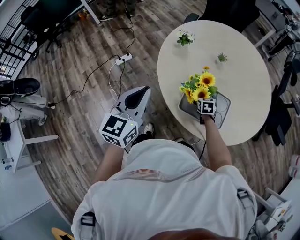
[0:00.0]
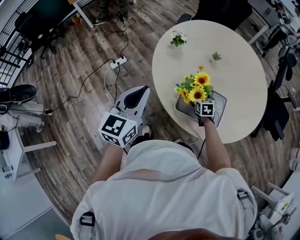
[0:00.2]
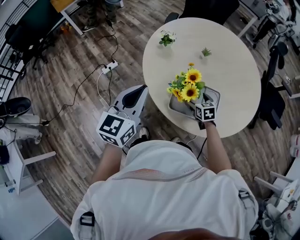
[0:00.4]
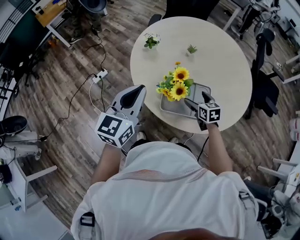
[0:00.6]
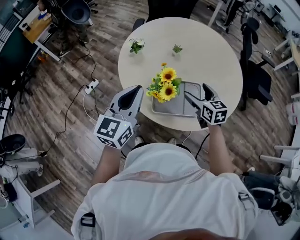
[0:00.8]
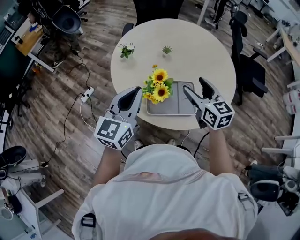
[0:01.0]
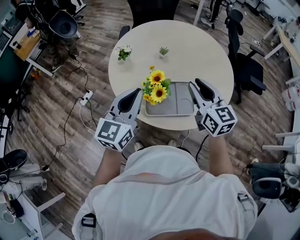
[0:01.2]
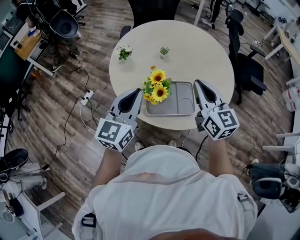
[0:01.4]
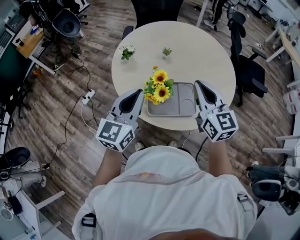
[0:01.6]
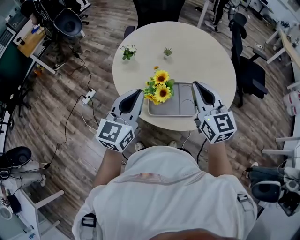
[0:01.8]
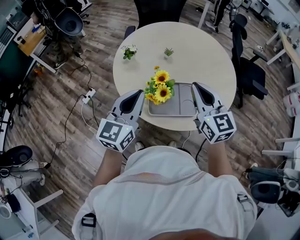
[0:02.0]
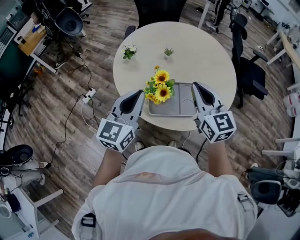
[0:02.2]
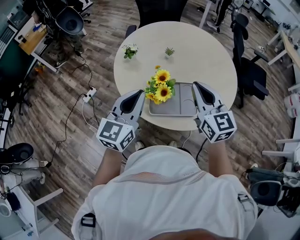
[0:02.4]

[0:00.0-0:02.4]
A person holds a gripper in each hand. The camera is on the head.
0:00.0 to 0:01.2: The right gripper shifts some 35 cm upward, tilts its fingers some 40 degrees upward, and closes its fingers, while the left gripper heads to the right, covering roughly 15 cm, and turns by roughly 30 degrees.
0:01.2 to 0:02.4: The grippers move only a little.

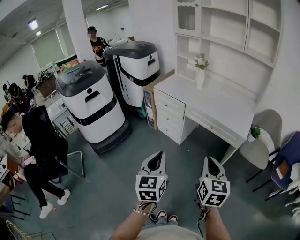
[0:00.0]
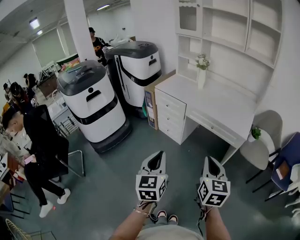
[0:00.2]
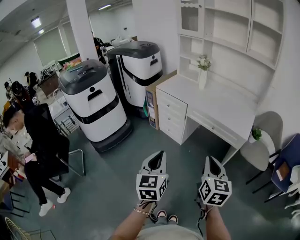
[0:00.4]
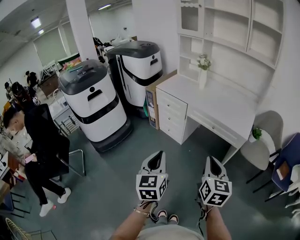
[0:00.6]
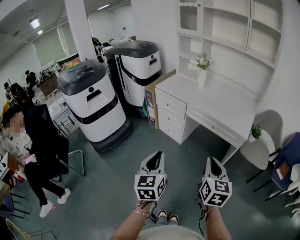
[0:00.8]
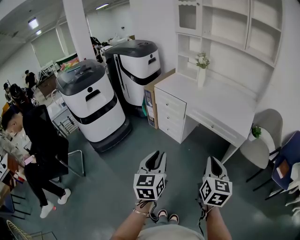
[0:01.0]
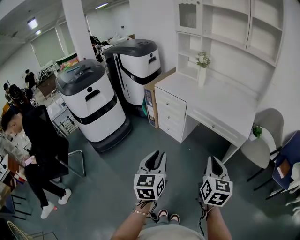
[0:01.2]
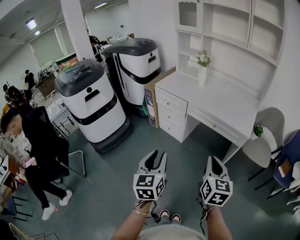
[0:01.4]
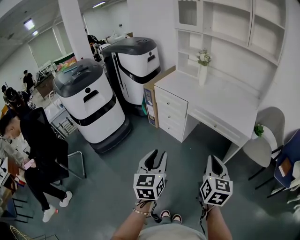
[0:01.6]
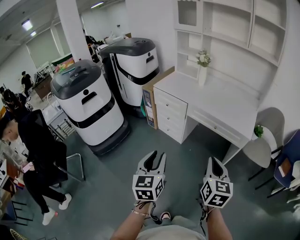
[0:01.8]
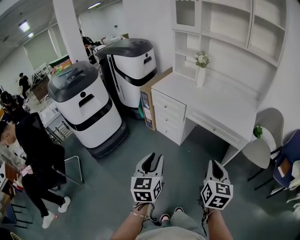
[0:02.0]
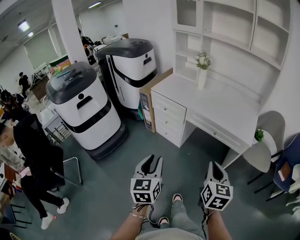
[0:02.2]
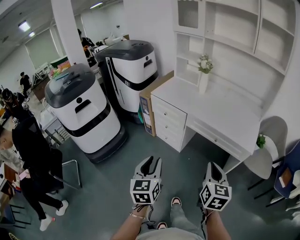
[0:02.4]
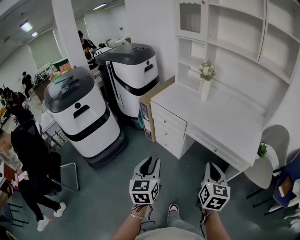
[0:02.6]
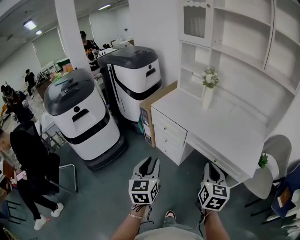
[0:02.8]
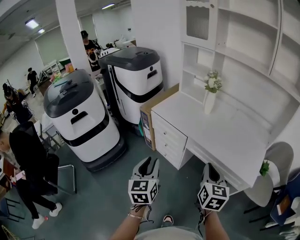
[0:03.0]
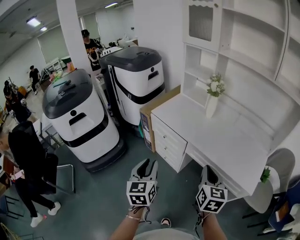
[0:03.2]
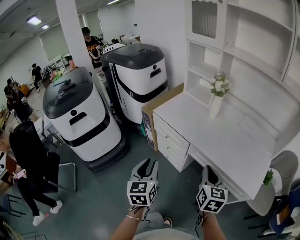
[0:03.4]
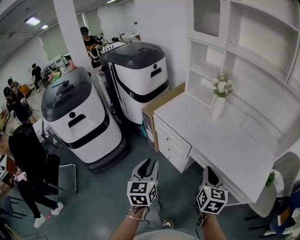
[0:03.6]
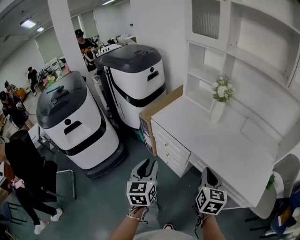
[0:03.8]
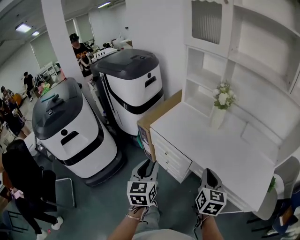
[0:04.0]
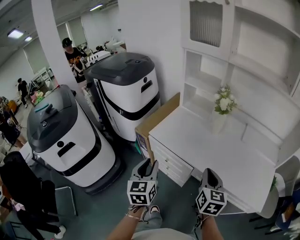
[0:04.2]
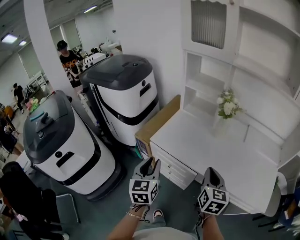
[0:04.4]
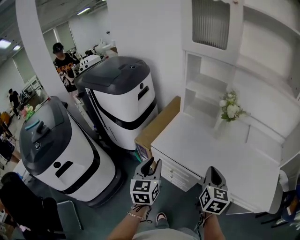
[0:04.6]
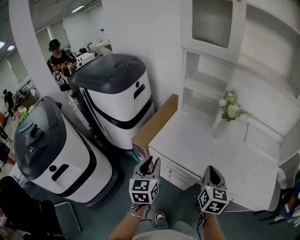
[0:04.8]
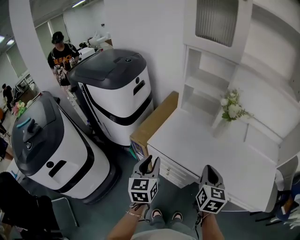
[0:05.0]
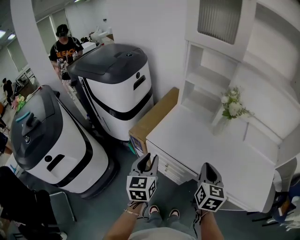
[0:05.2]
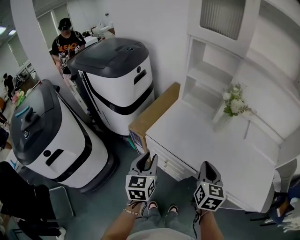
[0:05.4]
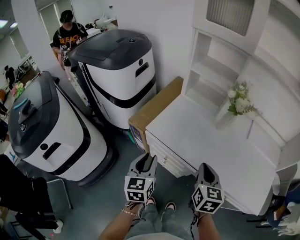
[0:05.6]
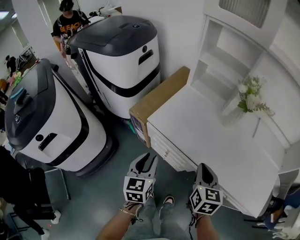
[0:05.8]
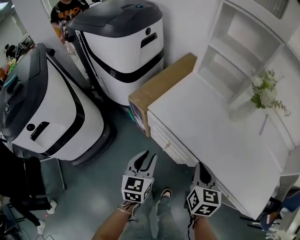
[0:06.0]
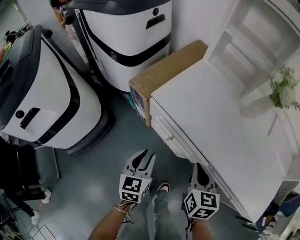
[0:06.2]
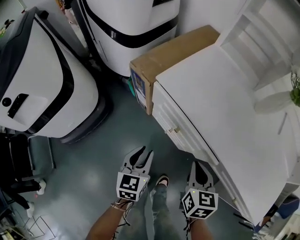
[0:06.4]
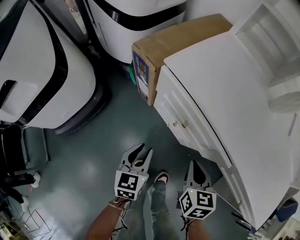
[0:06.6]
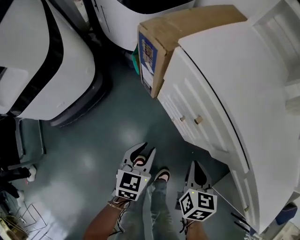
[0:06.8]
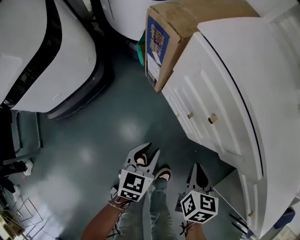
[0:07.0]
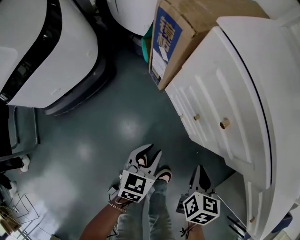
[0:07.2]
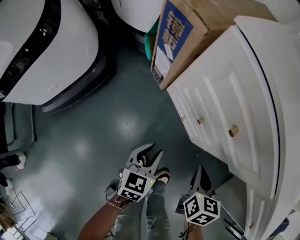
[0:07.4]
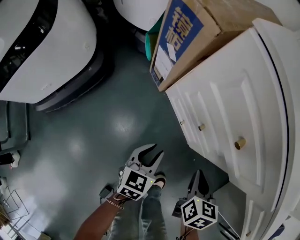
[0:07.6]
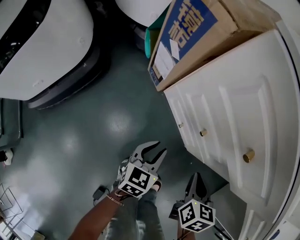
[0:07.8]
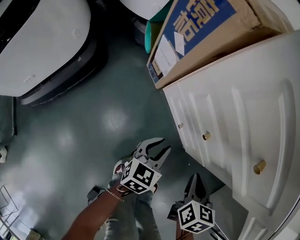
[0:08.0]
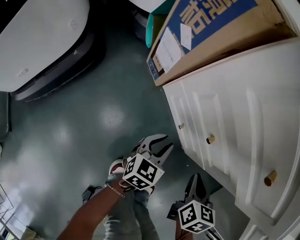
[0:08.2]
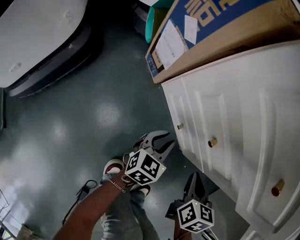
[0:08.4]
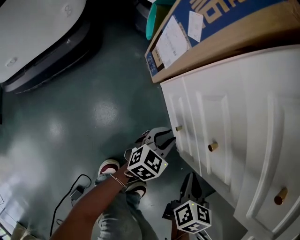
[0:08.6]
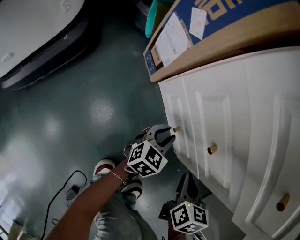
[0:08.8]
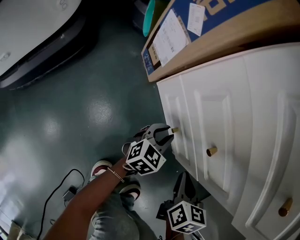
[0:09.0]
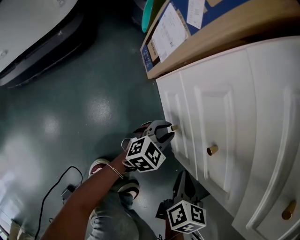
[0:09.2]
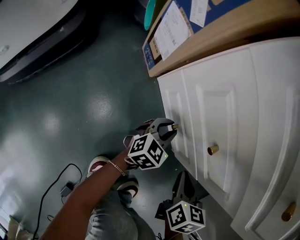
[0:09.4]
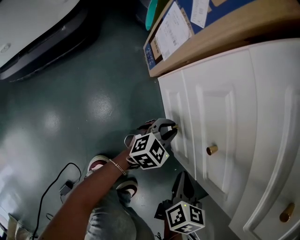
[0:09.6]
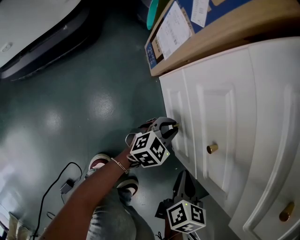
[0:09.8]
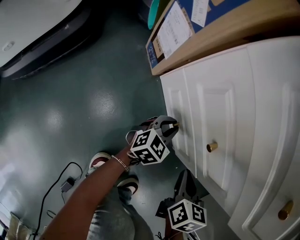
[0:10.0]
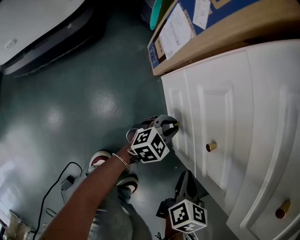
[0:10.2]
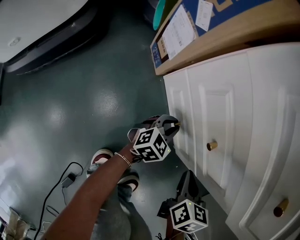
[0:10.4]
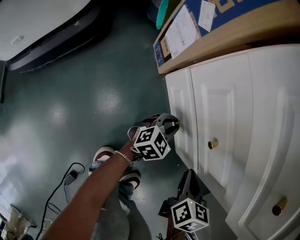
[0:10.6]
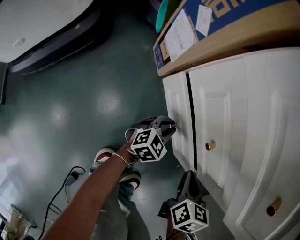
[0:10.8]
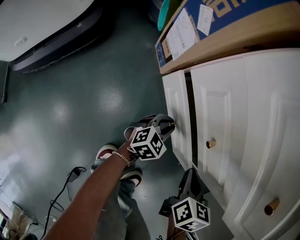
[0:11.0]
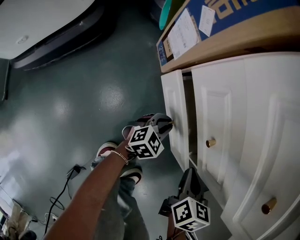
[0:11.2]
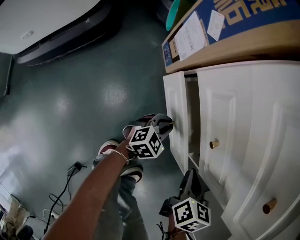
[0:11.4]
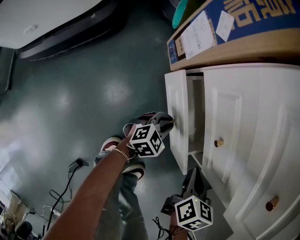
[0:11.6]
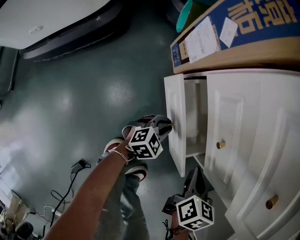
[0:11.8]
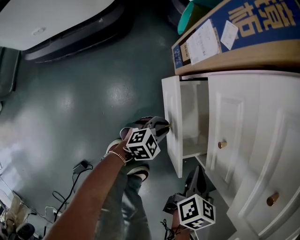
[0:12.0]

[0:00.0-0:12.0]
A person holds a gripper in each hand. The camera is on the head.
0:00.0 to 0:01.6: The left gripper opens its fingers.
0:01.6 to 0:03.0: Both grippers move forward, some 30 cm.
0:03.0 to 0:04.4: Both grippers move forward, about 25 cm.
0:04.4 to 0:06.0: The left gripper shifts some 15 cm downward. The right gripper shifts some 15 cm downward and to the left.
0:06.0 to 0:07.6: Both grippers move downward, roughly 40 cm.
0:07.6 to 0:09.0: The right gripper shifts some 15 cm downward. Meanwhile the left gripper shifts roughly 25 cm downward and forward.
0:09.0 to 0:10.4: The grippers move only a little.
0:10.4 to 0:12.0: The right gripper ends up some 5 cm from where it was. The left gripper heads backward, covering some 10 cm.

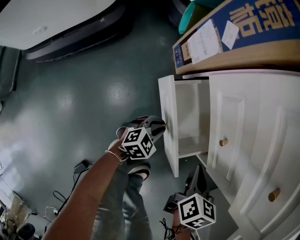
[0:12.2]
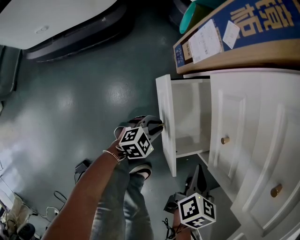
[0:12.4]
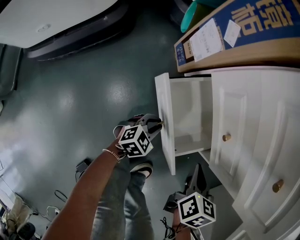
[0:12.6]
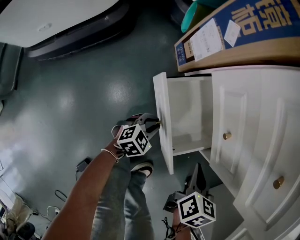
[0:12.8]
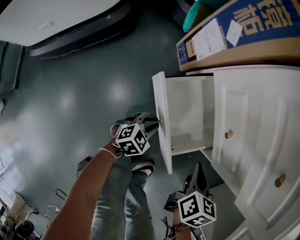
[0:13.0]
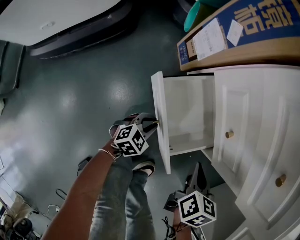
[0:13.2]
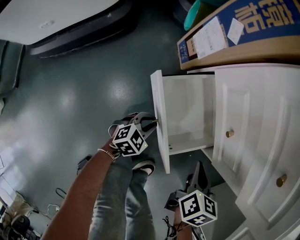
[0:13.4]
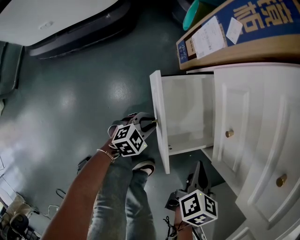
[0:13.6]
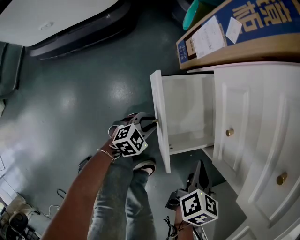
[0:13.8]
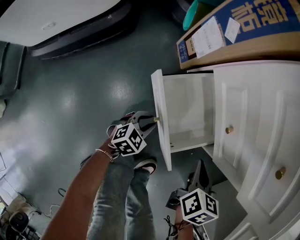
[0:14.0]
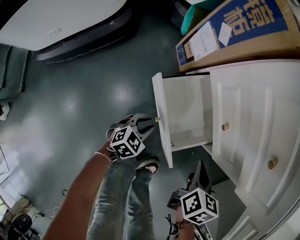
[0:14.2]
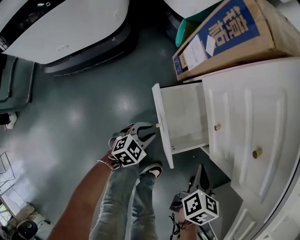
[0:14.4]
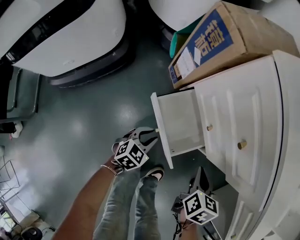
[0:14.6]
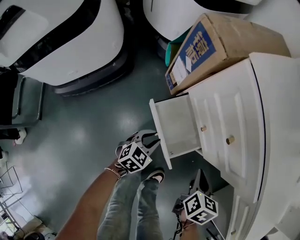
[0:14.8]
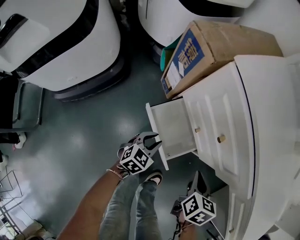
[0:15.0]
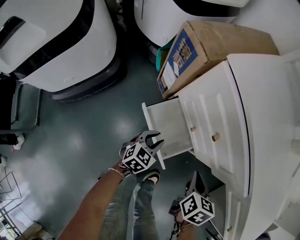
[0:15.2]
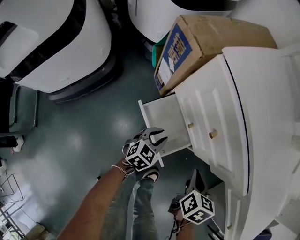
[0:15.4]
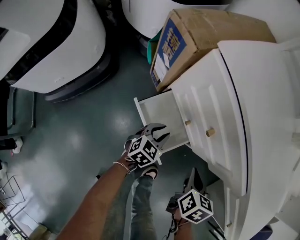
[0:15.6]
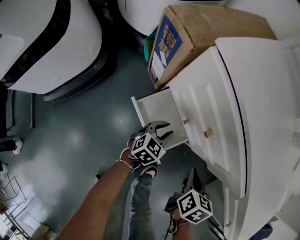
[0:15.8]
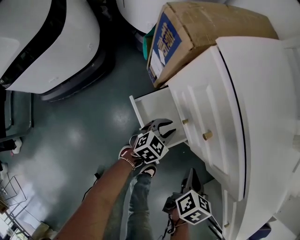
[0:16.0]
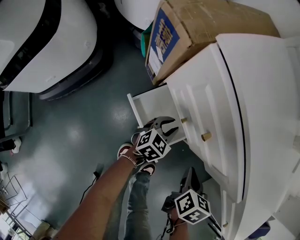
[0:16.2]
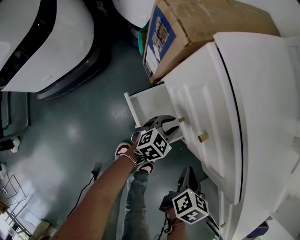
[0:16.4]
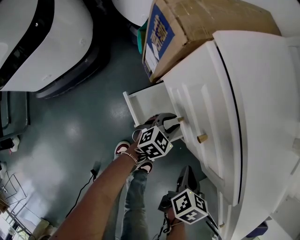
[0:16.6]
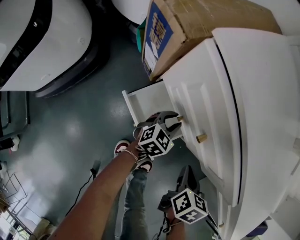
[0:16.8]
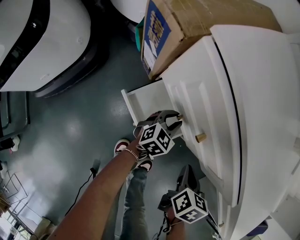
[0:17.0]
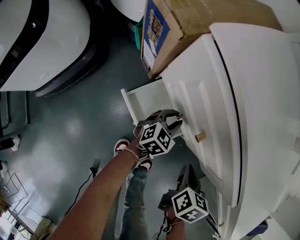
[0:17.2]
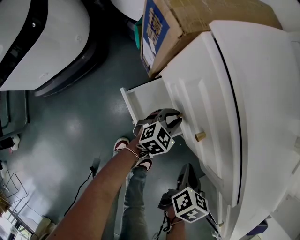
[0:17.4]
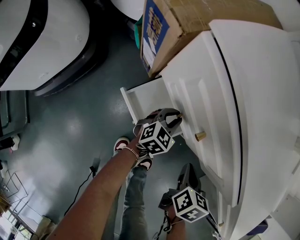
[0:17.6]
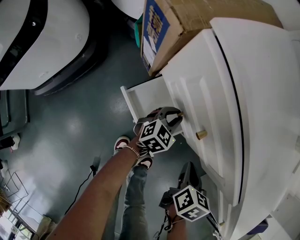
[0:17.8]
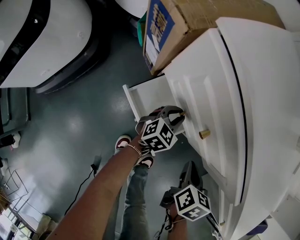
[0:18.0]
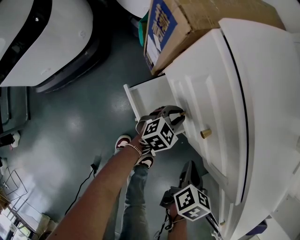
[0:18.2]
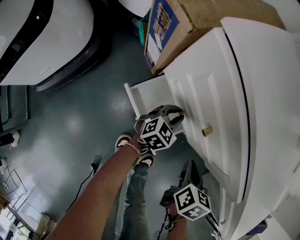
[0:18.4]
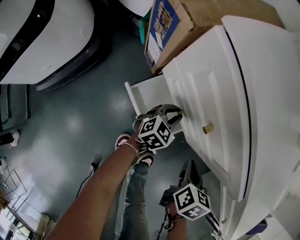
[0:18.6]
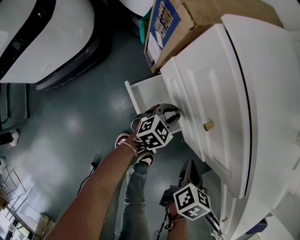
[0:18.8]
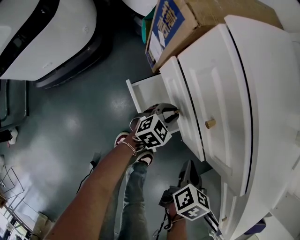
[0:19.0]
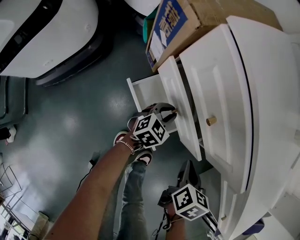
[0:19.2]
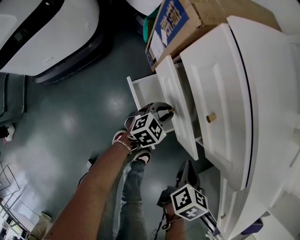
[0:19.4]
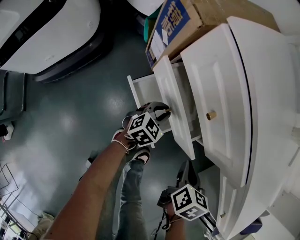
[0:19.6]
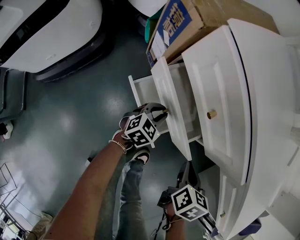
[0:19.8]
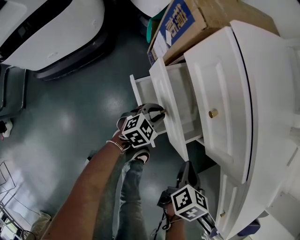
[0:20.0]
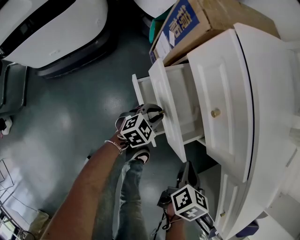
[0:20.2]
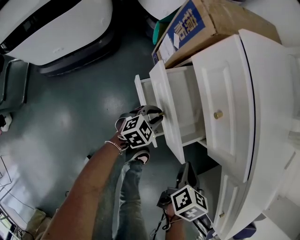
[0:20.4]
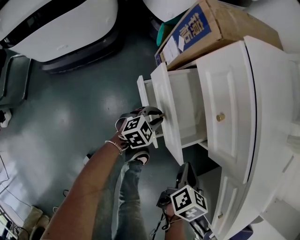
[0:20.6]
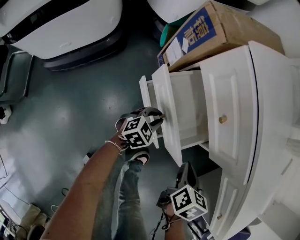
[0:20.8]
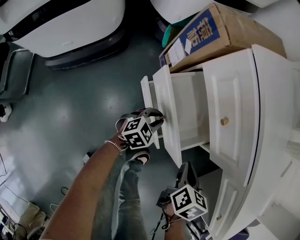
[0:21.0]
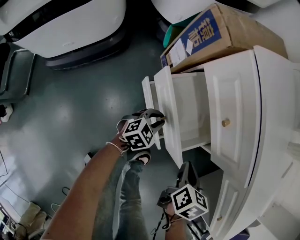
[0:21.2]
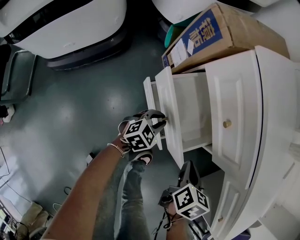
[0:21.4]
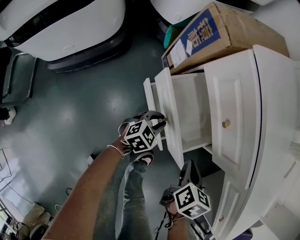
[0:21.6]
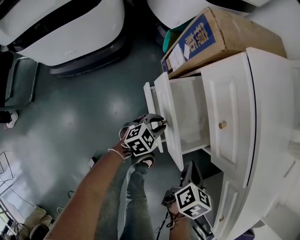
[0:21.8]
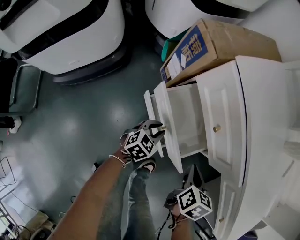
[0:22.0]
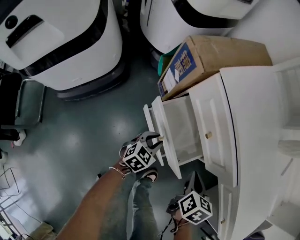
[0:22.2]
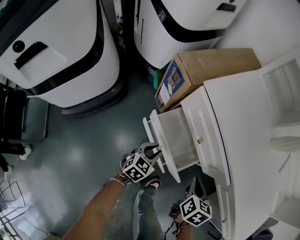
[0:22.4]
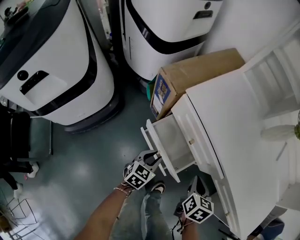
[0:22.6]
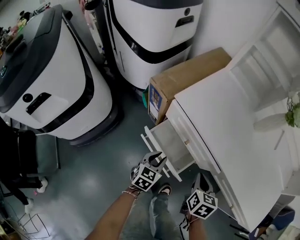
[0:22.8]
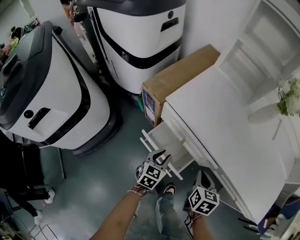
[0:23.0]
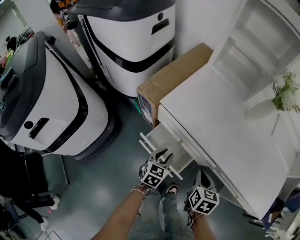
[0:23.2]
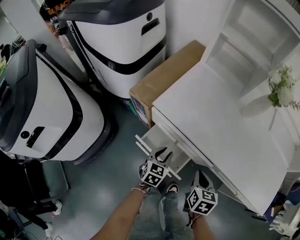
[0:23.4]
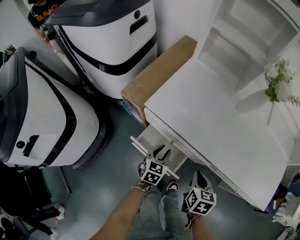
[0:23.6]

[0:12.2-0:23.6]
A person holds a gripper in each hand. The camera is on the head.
0:12.2 to 0:13.6: The left gripper travels backward by roughly 5 cm.
0:13.6 to 0:15.0: The two grippers go approximately 20 cm upward.
0:15.0 to 0:16.4: The left gripper moves forward and to the right, roughly 15 cm.
0:16.4 to 0:17.8: The grippers make only small movements.
0:17.8 to 0:19.4: The left gripper heads backward, covering some 5 cm.
0:19.4 to 0:20.8: The left gripper is displaced backward by some 10 cm.
0:20.8 to 0:22.2: Both grippers travel together upward, about 5 cm.
0:22.2 to 0:23.6: The right gripper heads upward, covering some 10 cm. Meanwhile the left gripper travels upward and forward by some 20 cm.
